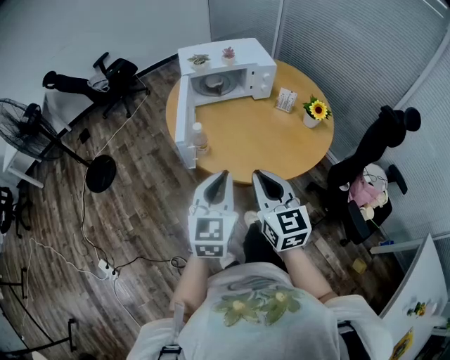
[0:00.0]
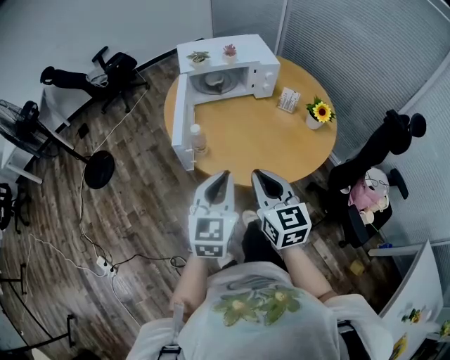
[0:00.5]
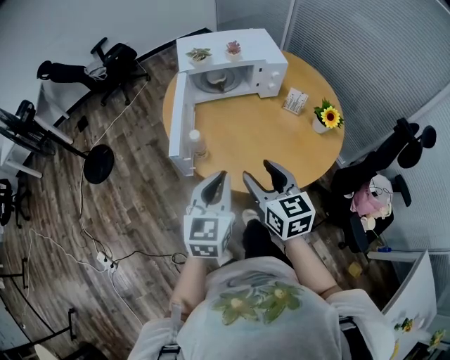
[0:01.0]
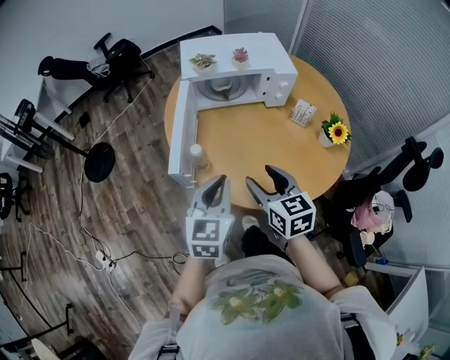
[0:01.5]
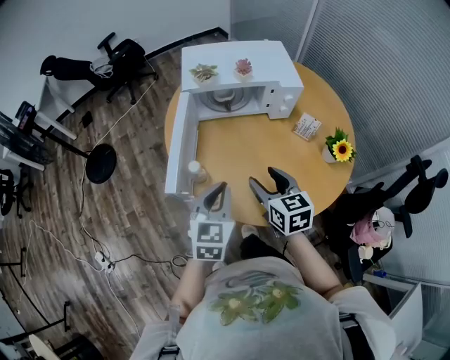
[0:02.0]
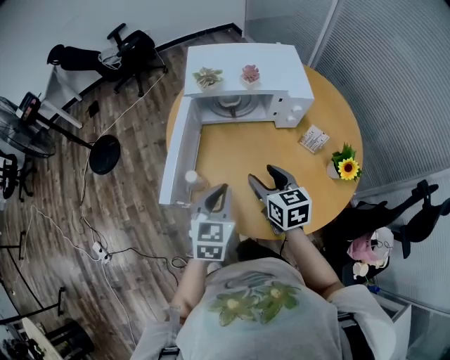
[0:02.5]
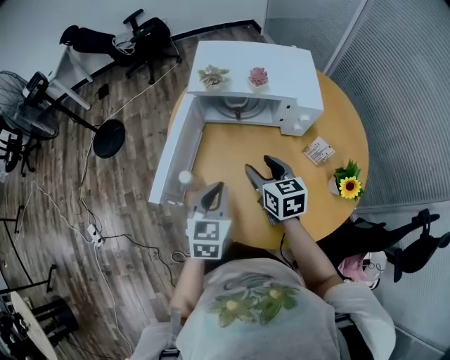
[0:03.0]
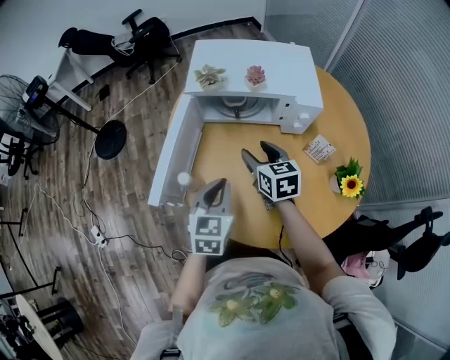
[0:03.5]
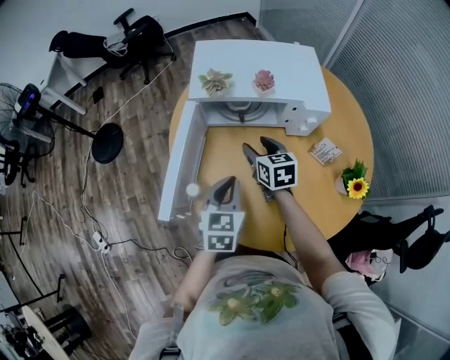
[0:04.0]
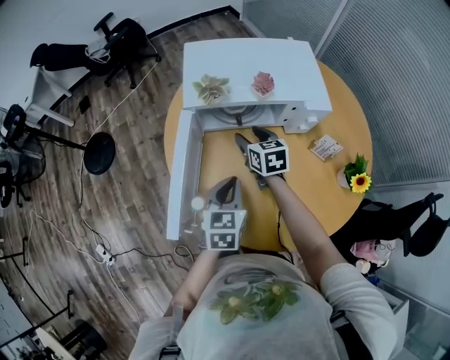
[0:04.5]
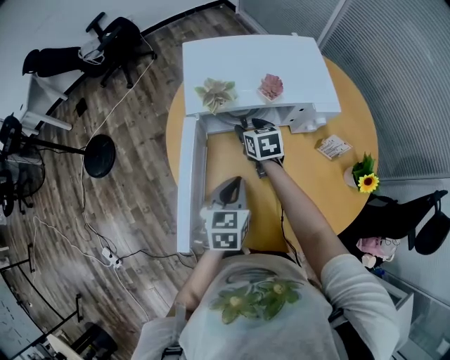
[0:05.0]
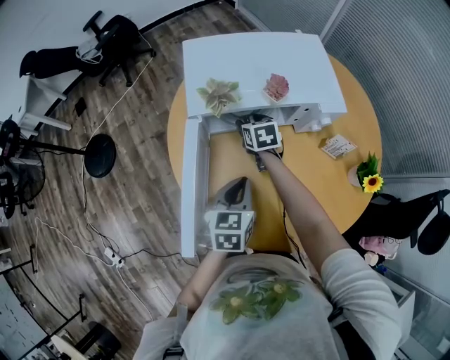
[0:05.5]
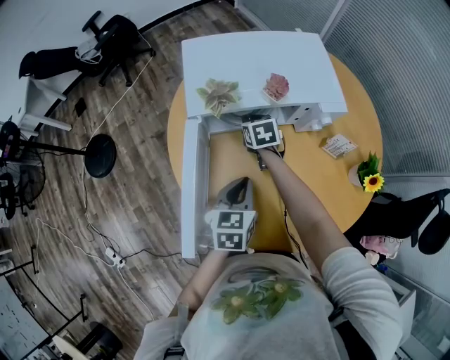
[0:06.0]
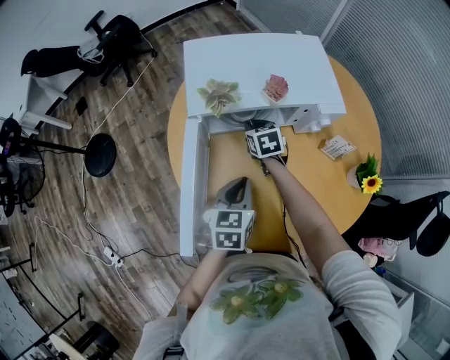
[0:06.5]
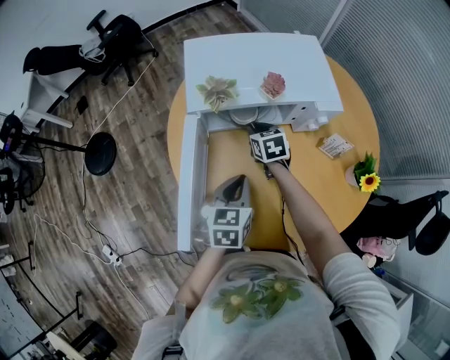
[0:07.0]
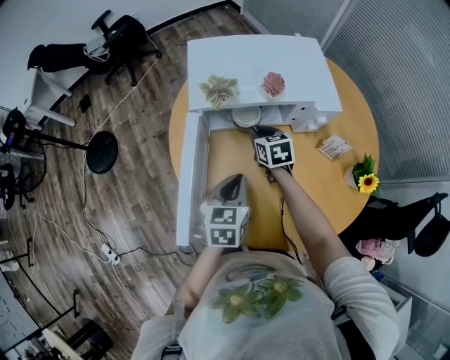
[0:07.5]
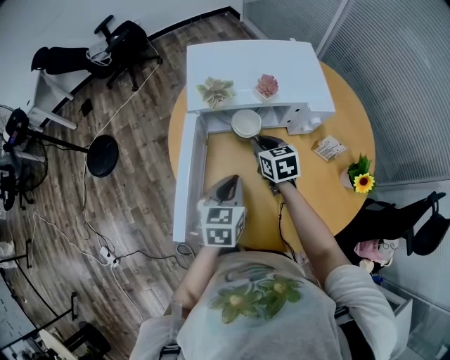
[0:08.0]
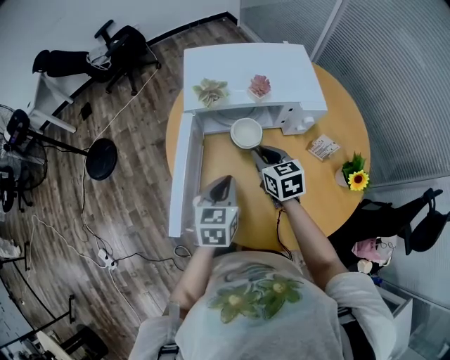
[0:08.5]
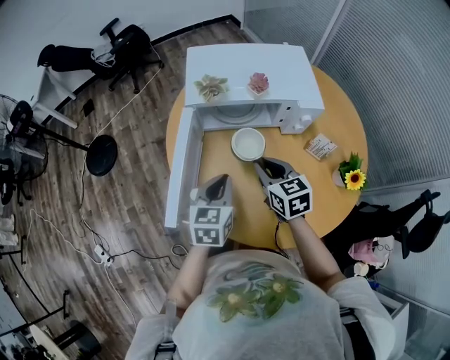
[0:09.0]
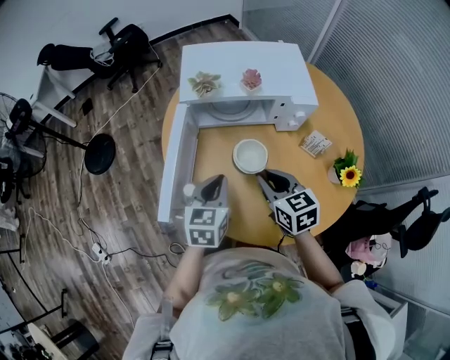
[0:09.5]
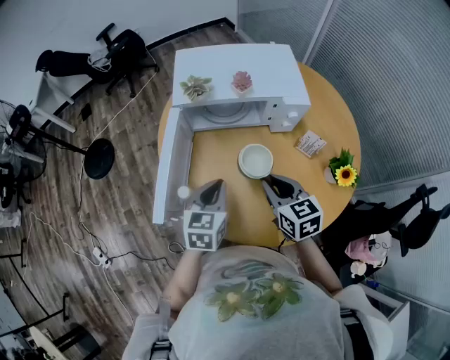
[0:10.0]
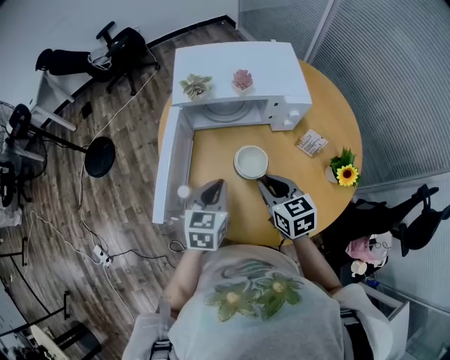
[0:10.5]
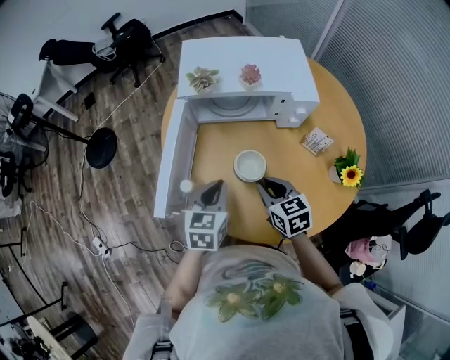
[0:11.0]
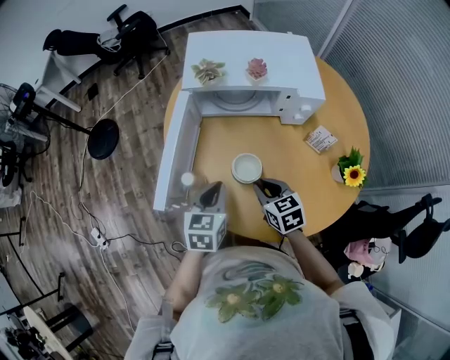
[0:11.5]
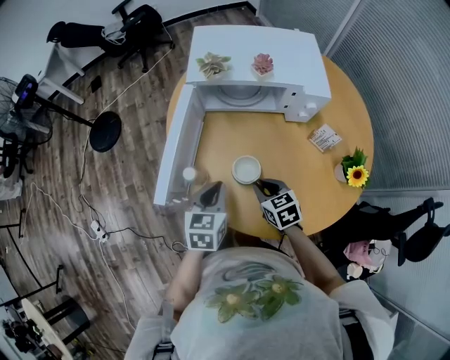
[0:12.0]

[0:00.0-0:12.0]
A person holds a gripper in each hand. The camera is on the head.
0:00.0 to 0:02.0: The two grippers go approximately 25 cm forward and downward. The right gripper turns by approximately 20 degrees, and opens.
0:02.0 to 0:04.0: The right gripper travels forward by about 20 cm. The left gripper moves forward, approximately 10 cm.
0:04.0 to 0:06.0: The right gripper heads forward and downward, covering some 15 cm, and closes up. The left gripper heads forward, covering some 5 cm.
0:06.0 to 0:08.0: The right gripper moves backward and upward, some 10 cm.
0:08.0 to 0:10.0: The right gripper heads backward and upward, covering roughly 20 cm; the left gripper goes approximately 5 cm backward.
0:10.0 to 0:12.0: The left gripper ends up roughly 5 cm from where it was. The right gripper goes about 15 cm downward.

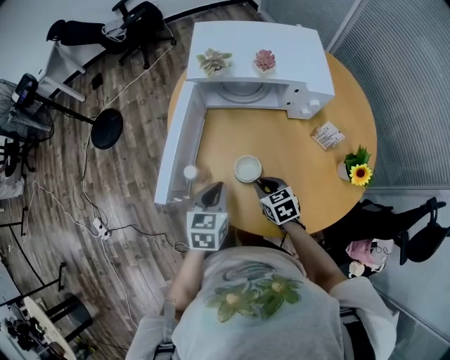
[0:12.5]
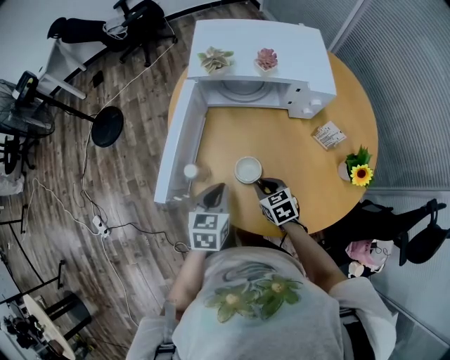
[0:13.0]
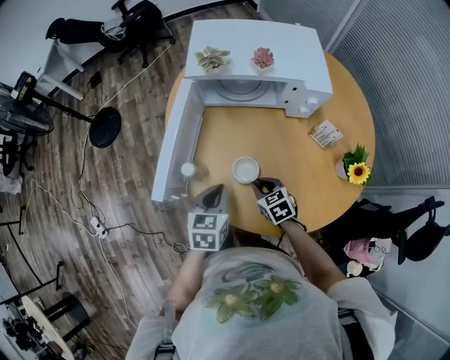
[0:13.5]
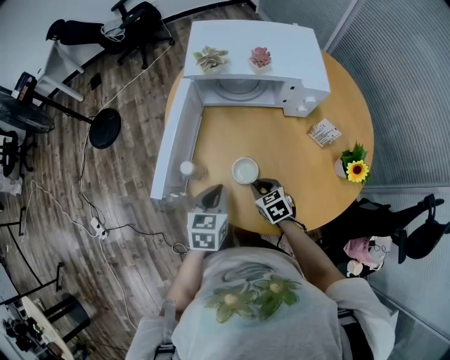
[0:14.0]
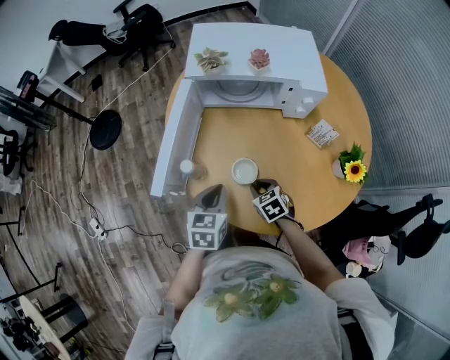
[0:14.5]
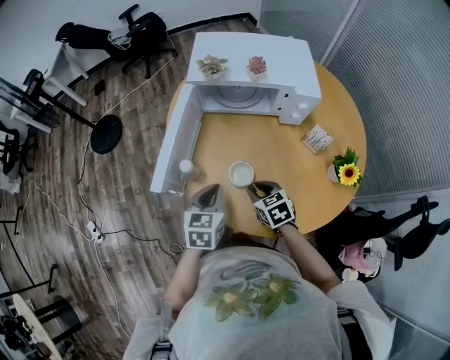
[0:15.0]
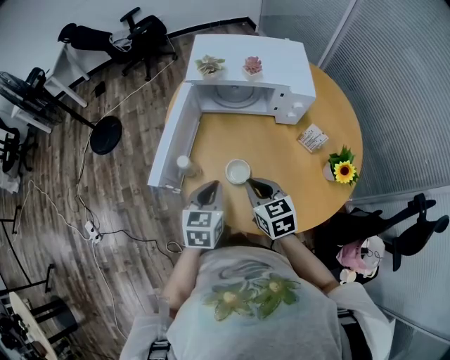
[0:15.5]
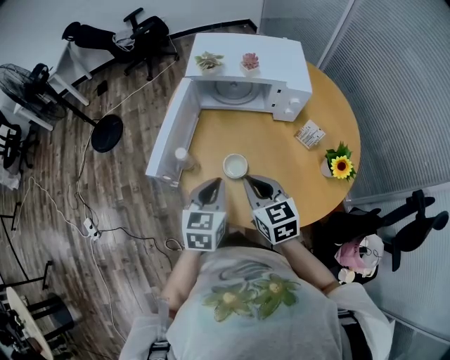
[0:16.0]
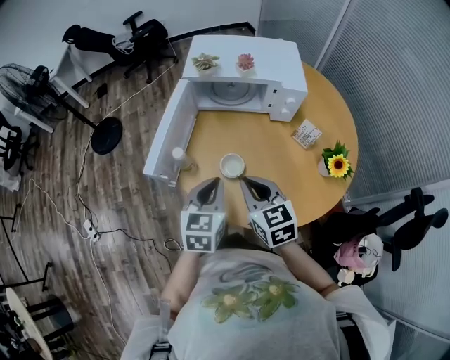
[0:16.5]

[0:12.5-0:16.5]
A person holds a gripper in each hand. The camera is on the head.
0:12.5 to 0:14.5: The grippers stay close to where they were, moving slightly.
0:14.5 to 0:16.5: The right gripper travels upward by about 25 cm, and rotates roughly 30 degrees. The left gripper shifts about 10 cm upward.

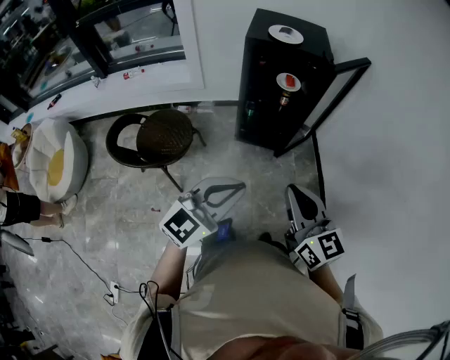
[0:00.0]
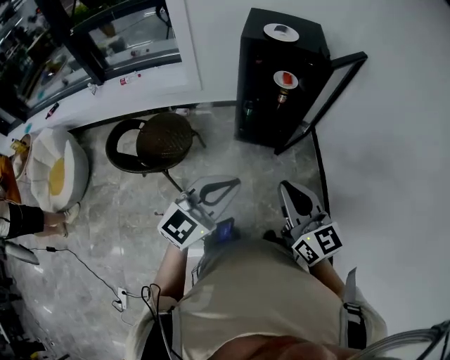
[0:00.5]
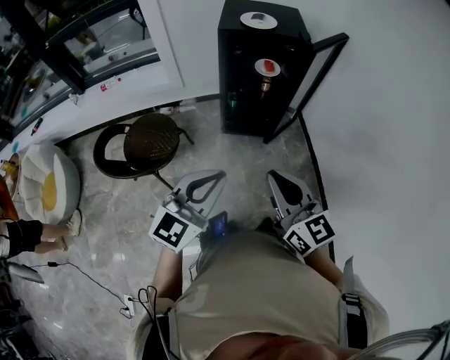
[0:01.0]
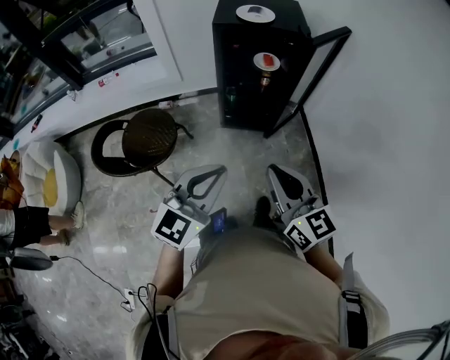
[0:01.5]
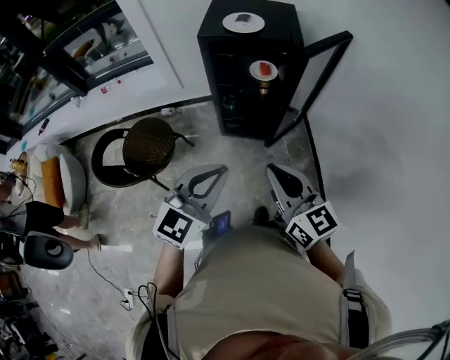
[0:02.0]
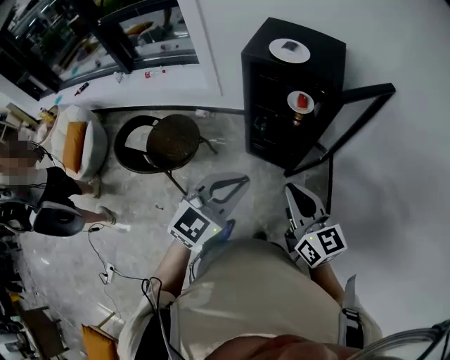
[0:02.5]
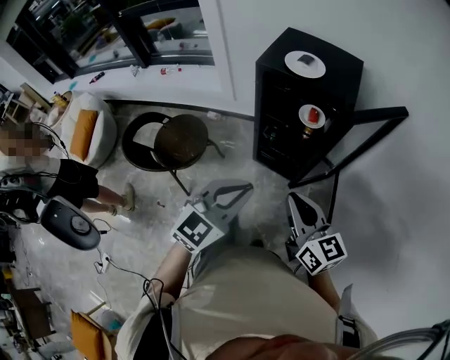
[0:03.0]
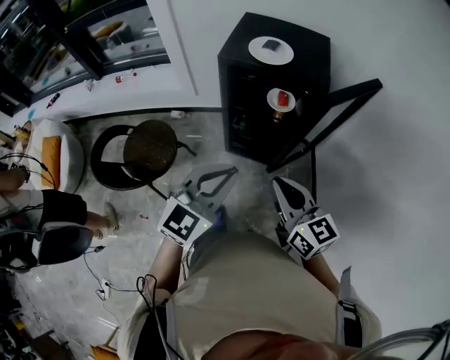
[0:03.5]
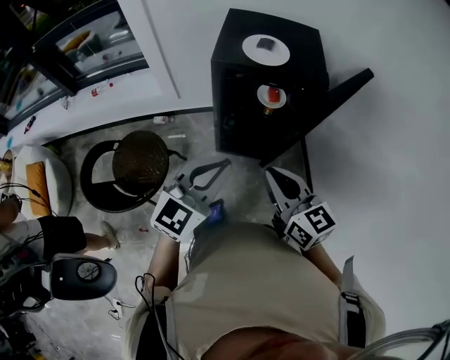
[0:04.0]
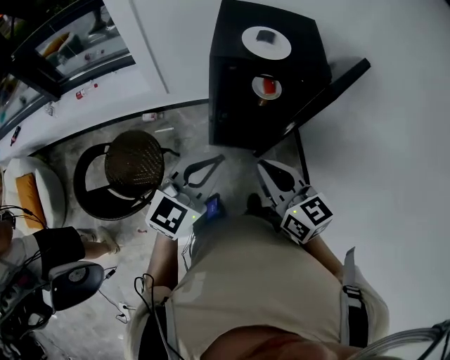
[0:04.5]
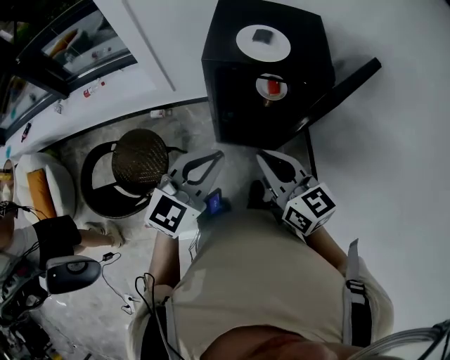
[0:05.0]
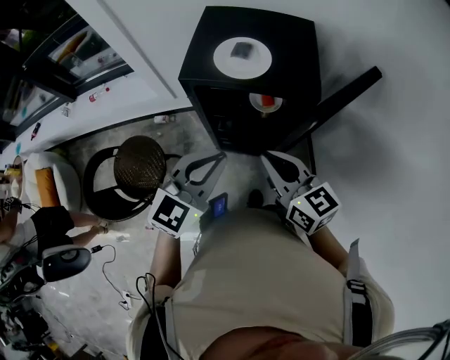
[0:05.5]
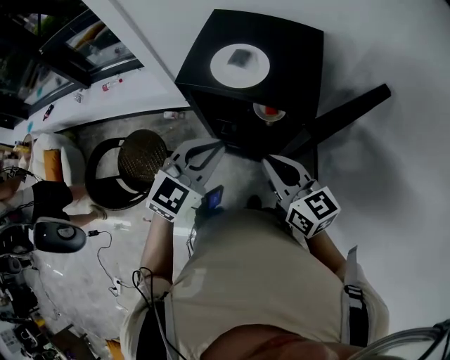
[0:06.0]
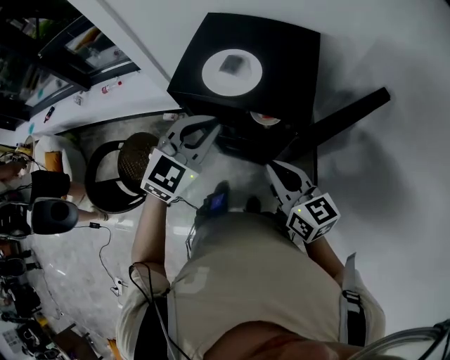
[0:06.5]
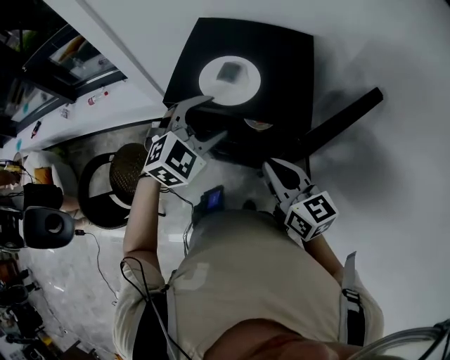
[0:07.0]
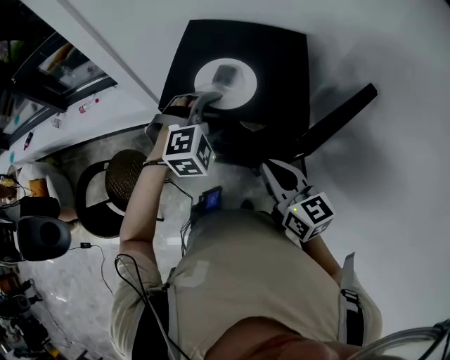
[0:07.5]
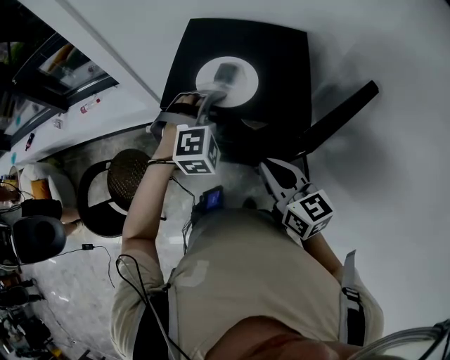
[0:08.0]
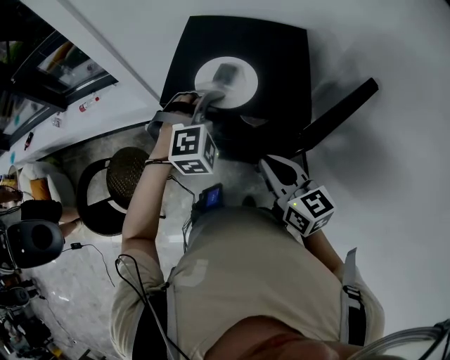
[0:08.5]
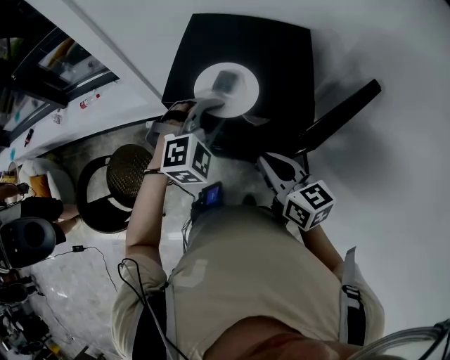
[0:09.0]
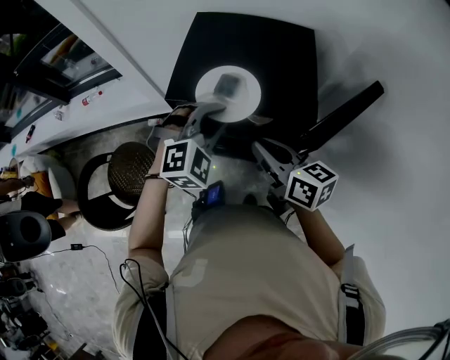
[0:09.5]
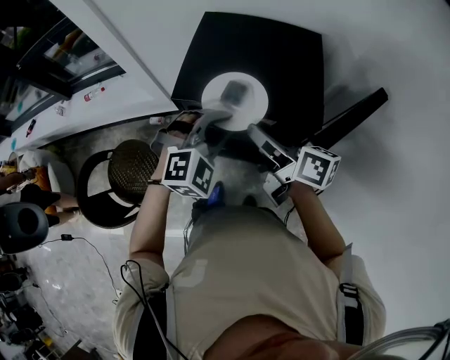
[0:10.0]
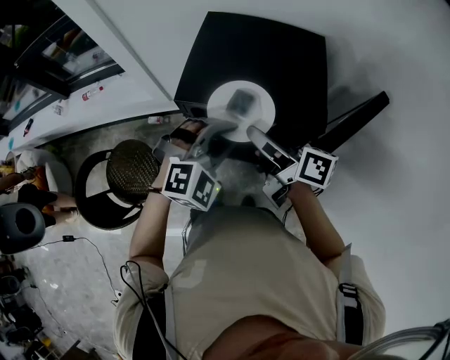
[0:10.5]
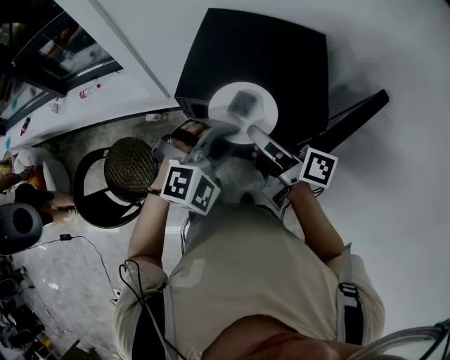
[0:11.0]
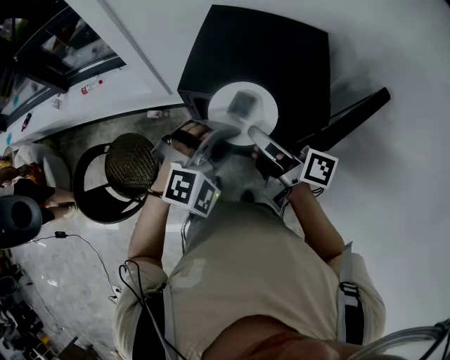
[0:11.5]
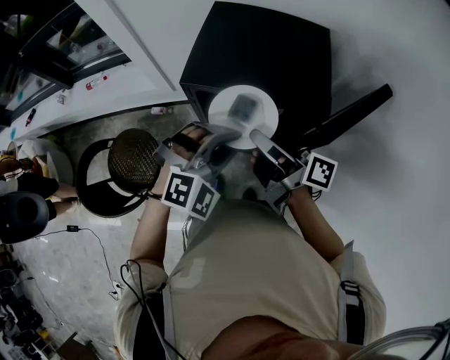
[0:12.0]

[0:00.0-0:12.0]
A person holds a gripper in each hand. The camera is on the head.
0:00.0 to 0:02.0: The right gripper shifts roughly 10 cm forward. The left gripper is displaced forward and to the right by some 10 cm.
0:02.0 to 0:04.0: The two grippers go about 15 cm forward.
0:04.0 to 0:06.0: Both grippers move forward and to the right, some 20 cm.
0:06.0 to 0:08.0: The left gripper shifts approximately 15 cm forward, rolls clockwise, seen from behind, by approximately 50 degrees, and opens.
0:08.0 to 0:10.0: The right gripper goes roughly 10 cm forward, rotates some 40 degrees, and opens up; the left gripper goes approximately 5 cm backward, and closes.
0:10.0 to 0:12.0: The left gripper shifts about 5 cm backward; the right gripper swivels approximately 20 degrees.
